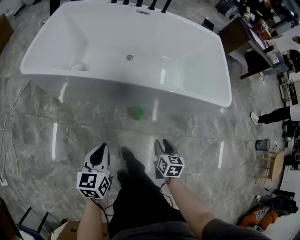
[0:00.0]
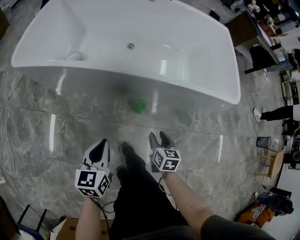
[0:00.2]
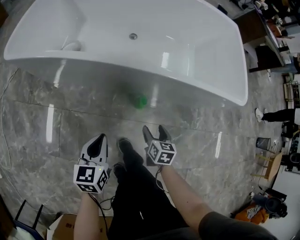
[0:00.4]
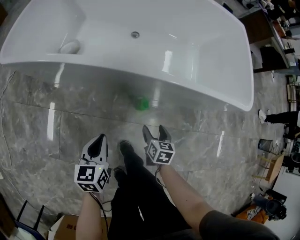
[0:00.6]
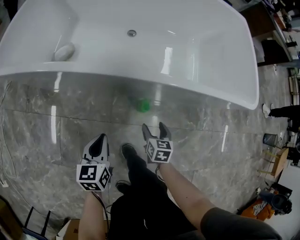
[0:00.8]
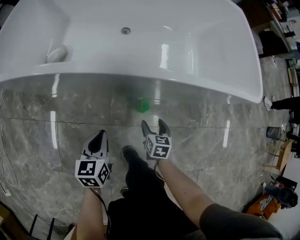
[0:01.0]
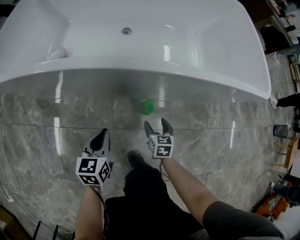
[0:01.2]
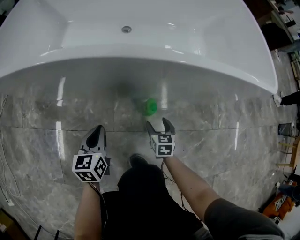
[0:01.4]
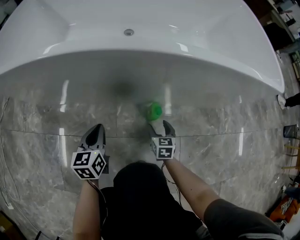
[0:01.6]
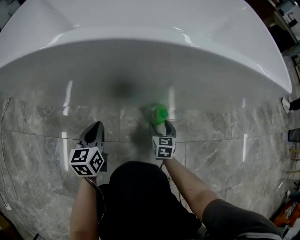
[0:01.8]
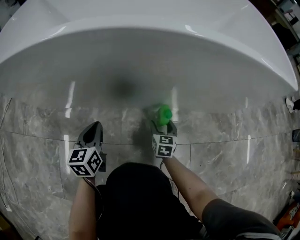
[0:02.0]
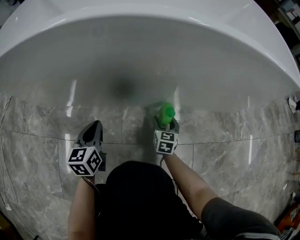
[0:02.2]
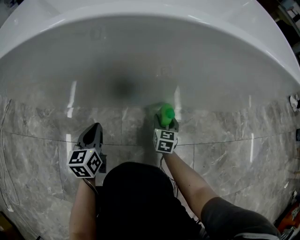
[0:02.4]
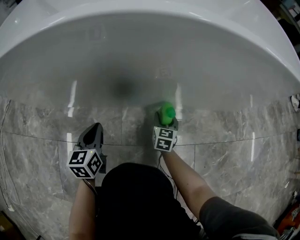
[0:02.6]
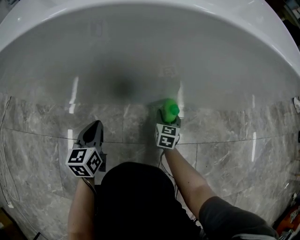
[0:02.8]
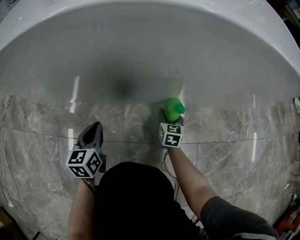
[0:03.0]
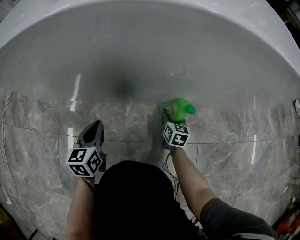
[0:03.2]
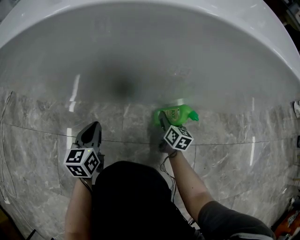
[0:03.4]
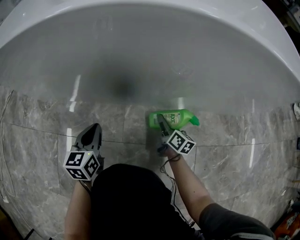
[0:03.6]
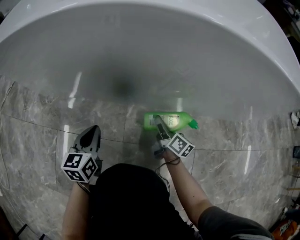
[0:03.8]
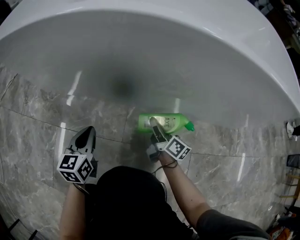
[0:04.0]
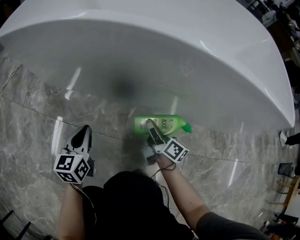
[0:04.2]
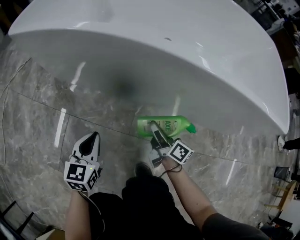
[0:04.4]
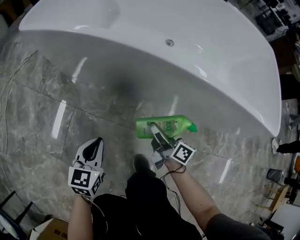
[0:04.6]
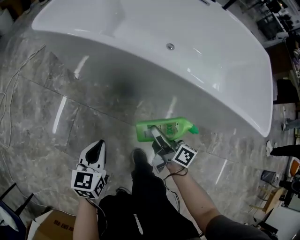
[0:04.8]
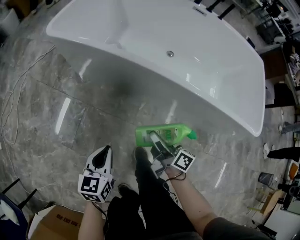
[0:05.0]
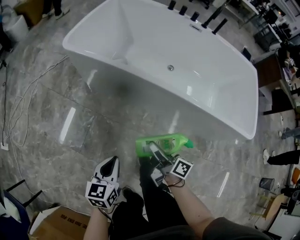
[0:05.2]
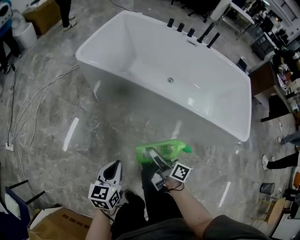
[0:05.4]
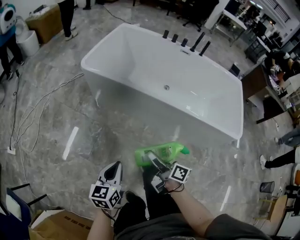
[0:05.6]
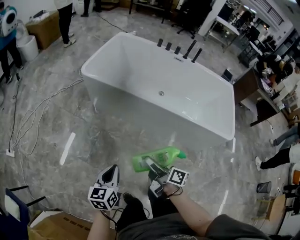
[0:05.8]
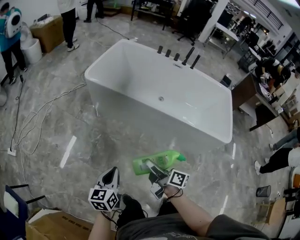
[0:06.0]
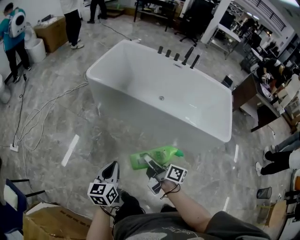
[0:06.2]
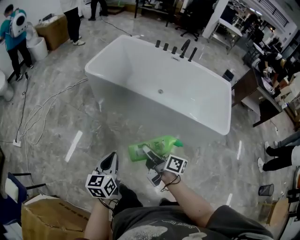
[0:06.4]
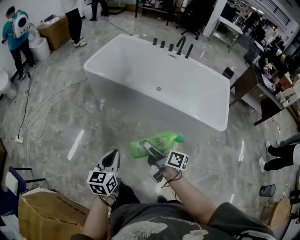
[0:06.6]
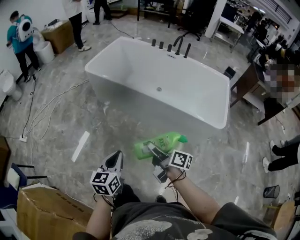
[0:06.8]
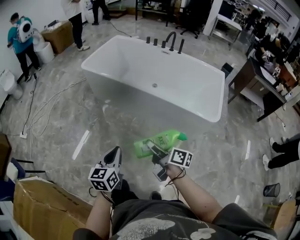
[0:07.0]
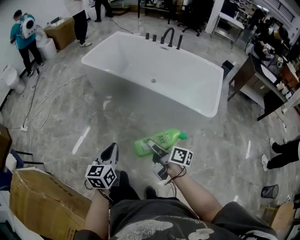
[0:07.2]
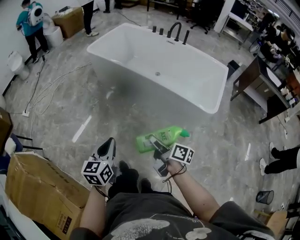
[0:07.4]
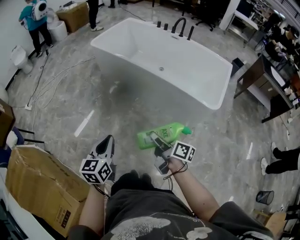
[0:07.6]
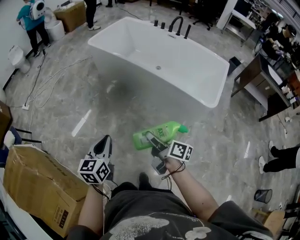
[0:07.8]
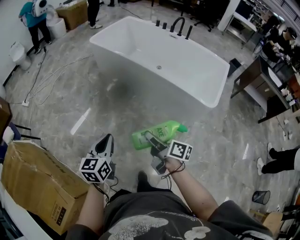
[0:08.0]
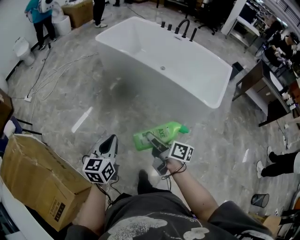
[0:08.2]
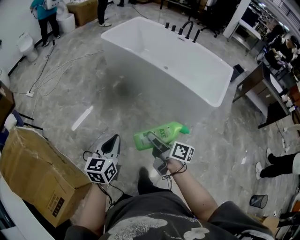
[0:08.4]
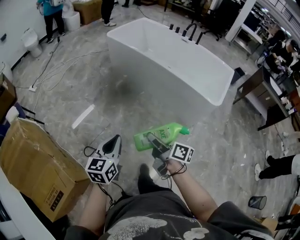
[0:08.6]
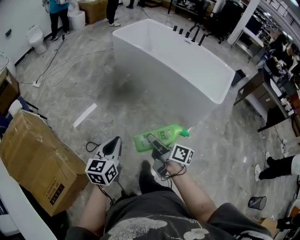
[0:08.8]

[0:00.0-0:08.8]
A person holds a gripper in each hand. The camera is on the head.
0:00.0 to 0:01.4: The left gripper moves downward and forward, about 35 cm; the right gripper heads downward, covering approximately 35 cm, and opens.
0:01.4 to 0:03.0: The left gripper goes approximately 15 cm downward. Meanwhile the right gripper travels downward and forward by some 20 cm.
0:03.0 to 0:04.4: The right gripper goes some 25 cm upward and to the left, and turns by some 60 degrees. Meanwhile the left gripper moves upward, backward and to the left, some 20 cm.
0:04.4 to 0:05.8: The two grippers go about 50 cm upward and backward.
0:05.8 to 0:07.4: The pair of grippers is taken backward and to the right, approximately 40 cm.
0:07.4 to 0:08.8: Both grippers travel together backward and to the left, roughly 25 cm.

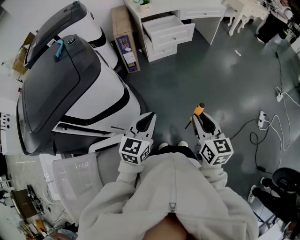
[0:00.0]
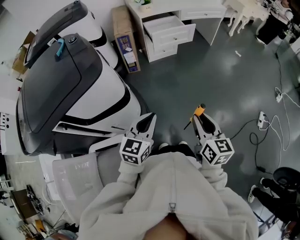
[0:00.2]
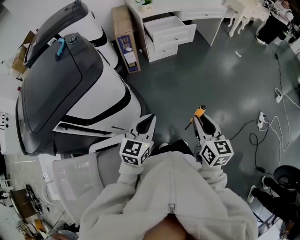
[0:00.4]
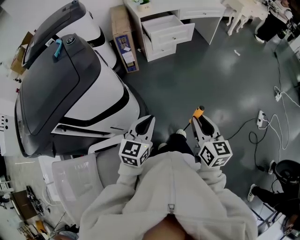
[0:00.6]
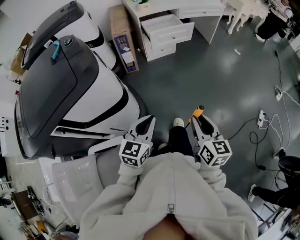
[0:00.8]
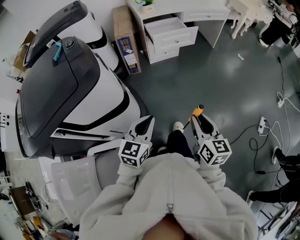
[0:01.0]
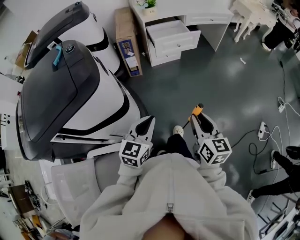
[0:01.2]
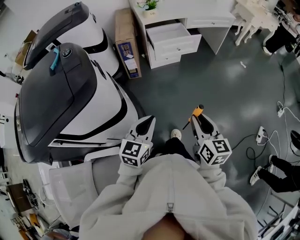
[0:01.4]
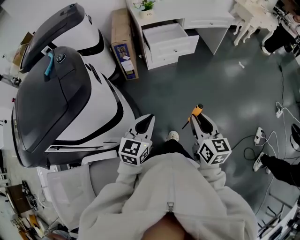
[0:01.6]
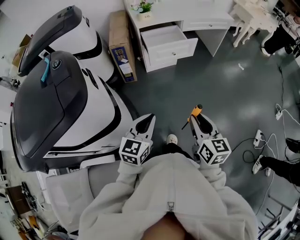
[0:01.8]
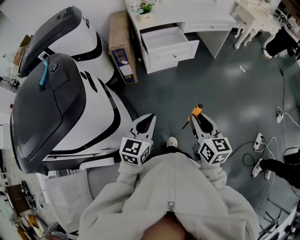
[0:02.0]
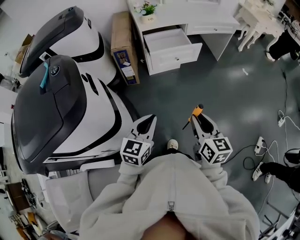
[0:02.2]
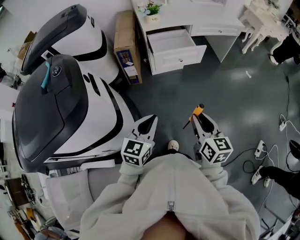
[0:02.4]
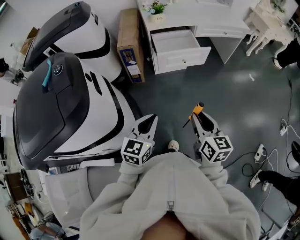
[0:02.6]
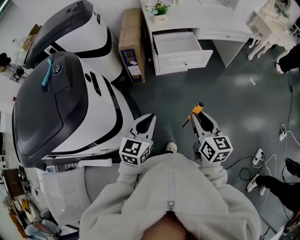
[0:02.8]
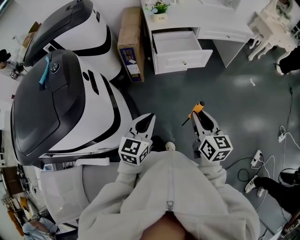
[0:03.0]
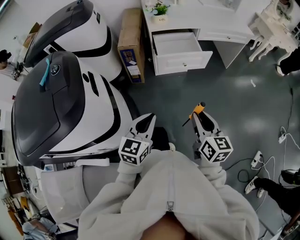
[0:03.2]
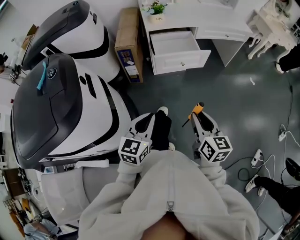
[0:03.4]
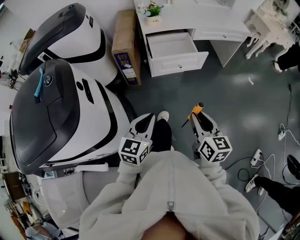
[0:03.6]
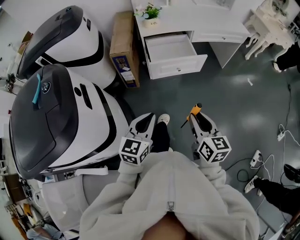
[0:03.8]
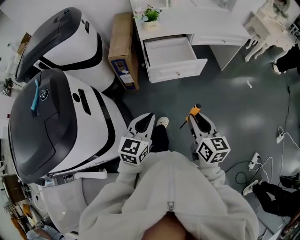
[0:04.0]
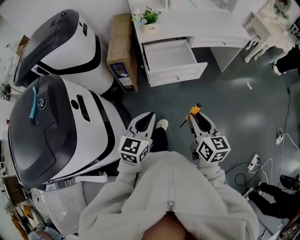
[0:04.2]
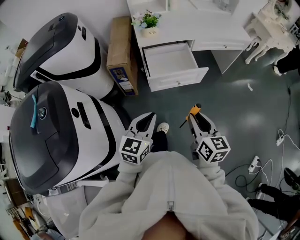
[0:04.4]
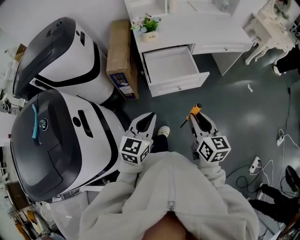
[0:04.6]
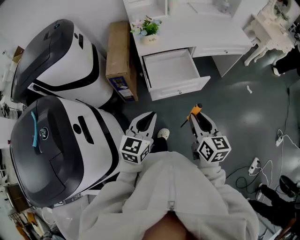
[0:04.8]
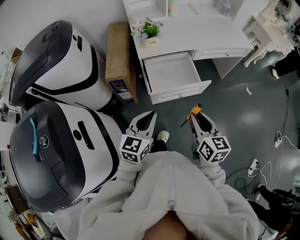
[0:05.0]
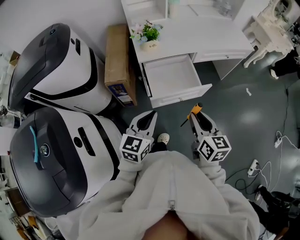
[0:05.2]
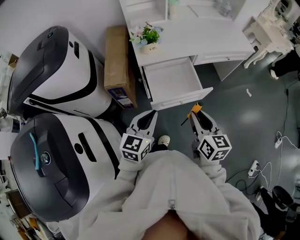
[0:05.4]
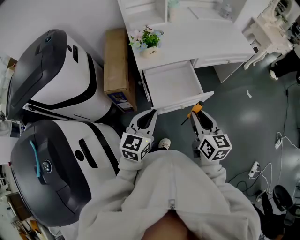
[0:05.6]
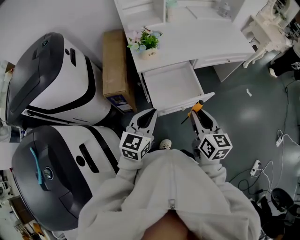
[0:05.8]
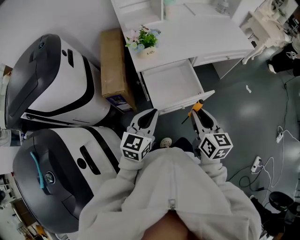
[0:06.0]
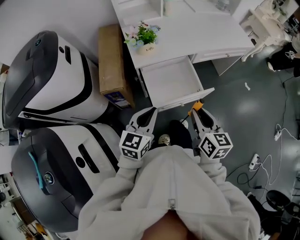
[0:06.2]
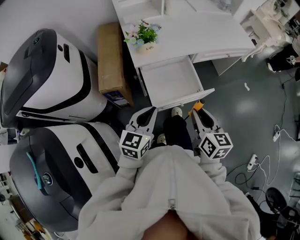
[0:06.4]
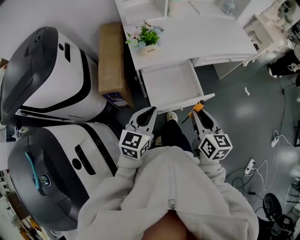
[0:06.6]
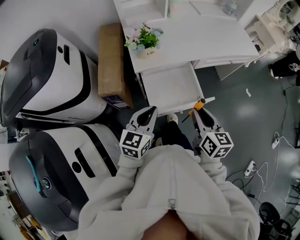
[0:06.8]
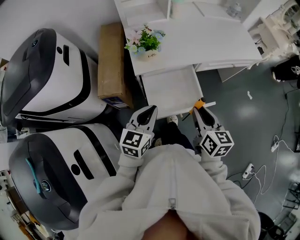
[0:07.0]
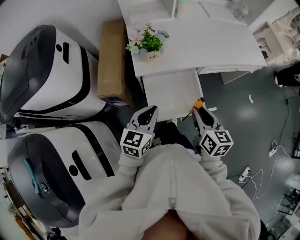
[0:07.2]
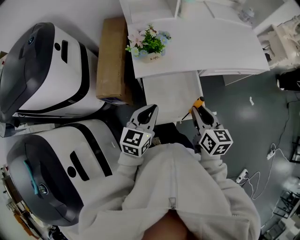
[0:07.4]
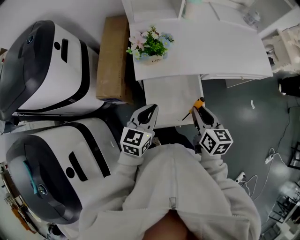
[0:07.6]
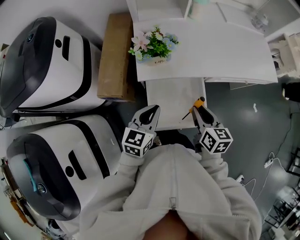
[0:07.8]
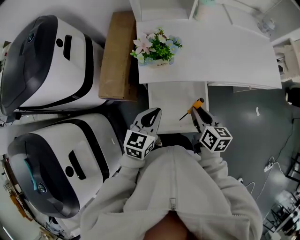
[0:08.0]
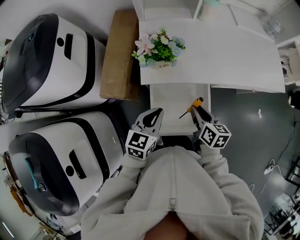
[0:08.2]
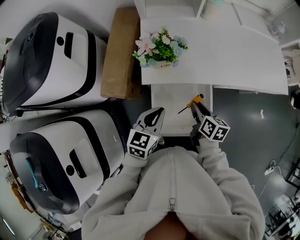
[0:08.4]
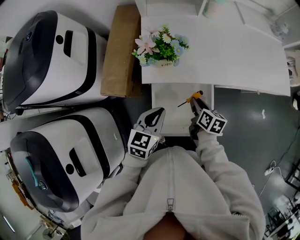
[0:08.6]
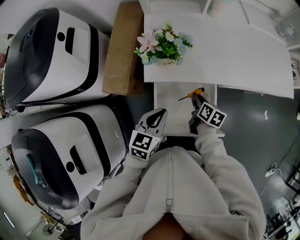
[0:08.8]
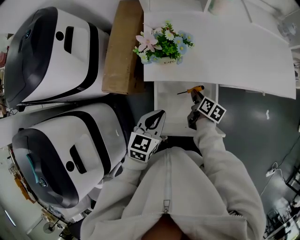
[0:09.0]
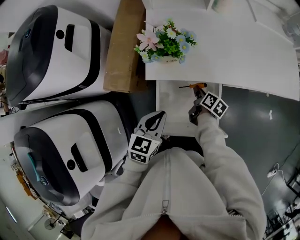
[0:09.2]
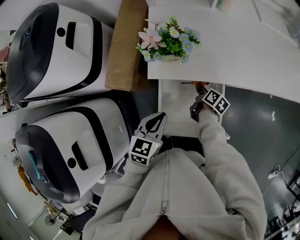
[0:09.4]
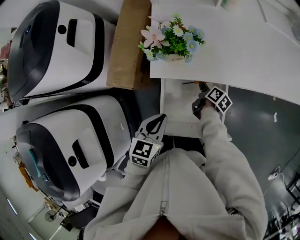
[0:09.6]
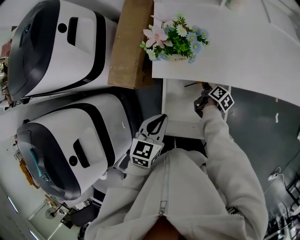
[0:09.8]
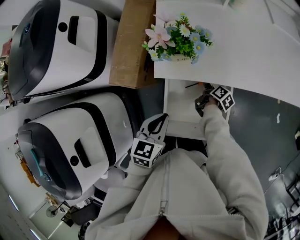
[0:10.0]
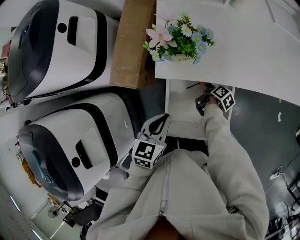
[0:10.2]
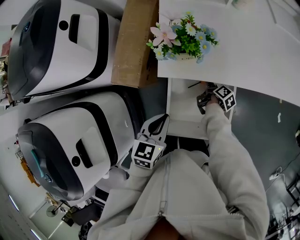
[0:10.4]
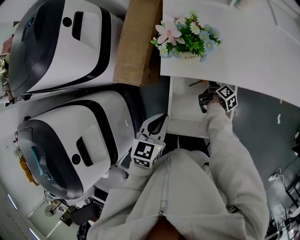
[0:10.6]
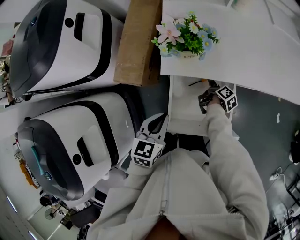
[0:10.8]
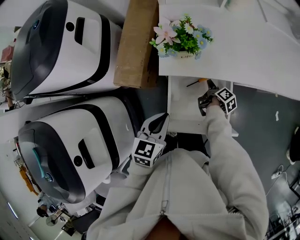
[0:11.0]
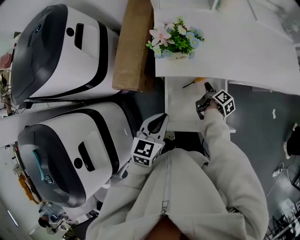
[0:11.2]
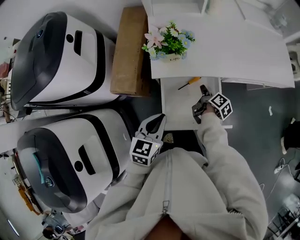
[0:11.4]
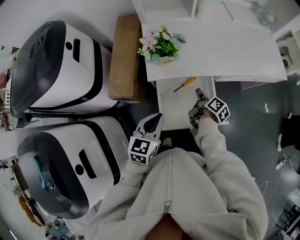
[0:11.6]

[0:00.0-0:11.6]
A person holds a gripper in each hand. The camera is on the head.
0:00.0 to 0:01.4: Both grippers move forward, approximately 10 cm.
0:01.4 to 0:02.8: Both grippers move forward, some 15 cm.
0:02.8 to 0:04.4: Both grippers travel together forward, some 15 cm.
0:04.4 to 0:05.8: The grippers both shift forward by some 20 cm.
0:05.8 to 0:07.2: The grippers both shift forward by roughly 10 cm.
0:07.2 to 0:08.8: The right gripper heads downward and forward, covering about 25 cm, and turns by approximately 30 degrees. The left gripper goes about 10 cm forward and downward.
0:08.8 to 0:10.2: The right gripper moves downward and forward, roughly 15 cm, and rotates some 30 degrees.
0:10.2 to 0:11.6: The right gripper travels upward and backward by roughly 15 cm. The left gripper moves upward, about 5 cm.

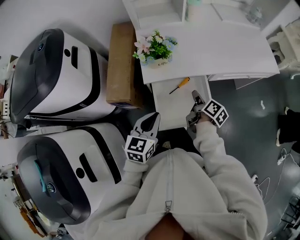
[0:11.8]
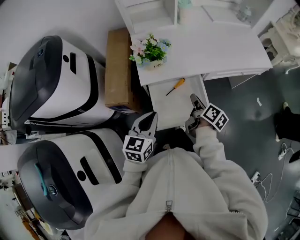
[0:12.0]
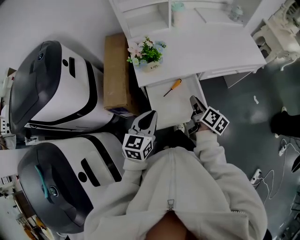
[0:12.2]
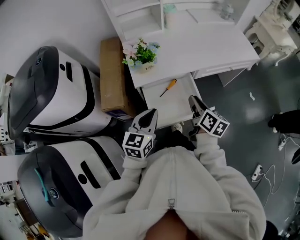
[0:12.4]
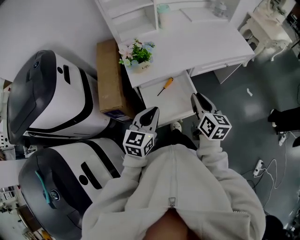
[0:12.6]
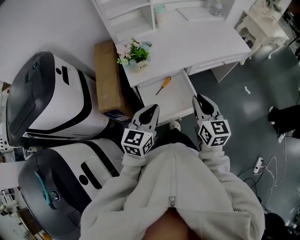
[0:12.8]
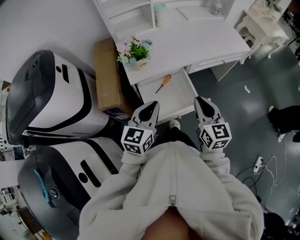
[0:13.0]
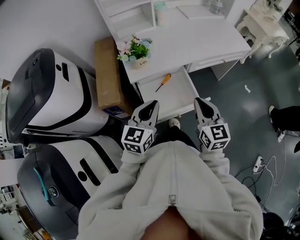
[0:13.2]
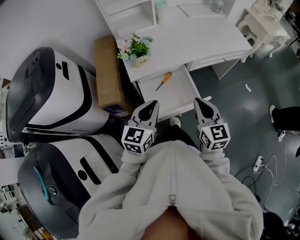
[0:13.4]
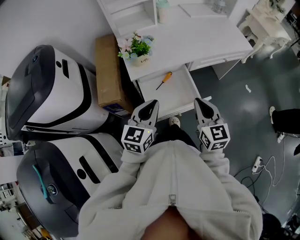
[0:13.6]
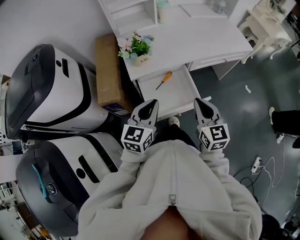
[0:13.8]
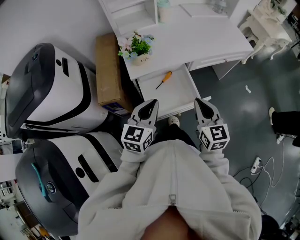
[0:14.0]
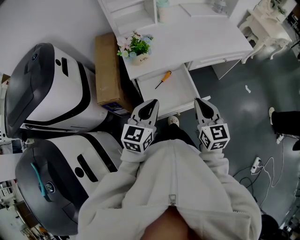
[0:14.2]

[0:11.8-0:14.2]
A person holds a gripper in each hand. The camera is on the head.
0:11.8 to 0:13.0: The left gripper moves upward, roughly 5 cm; the right gripper moves upward and backward, approximately 20 cm, and twists roughly 60 degrees counterclockwise, seen from behind.
0:13.0 to 0:14.2: There are only small adjustments of the grippers.

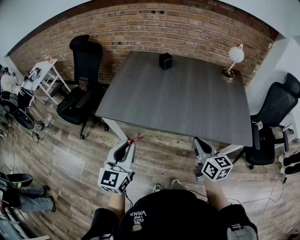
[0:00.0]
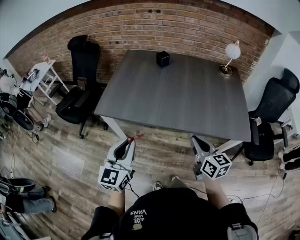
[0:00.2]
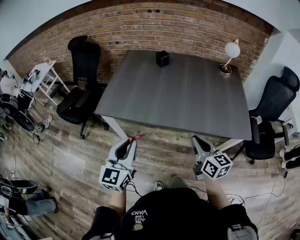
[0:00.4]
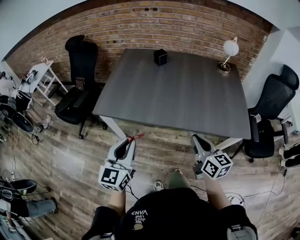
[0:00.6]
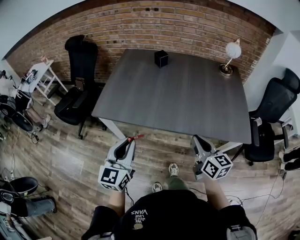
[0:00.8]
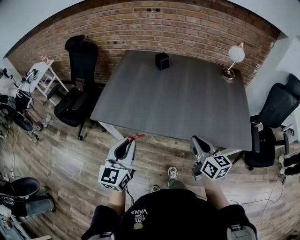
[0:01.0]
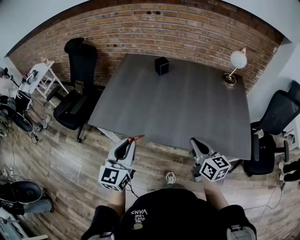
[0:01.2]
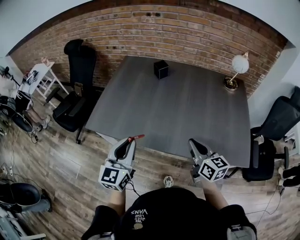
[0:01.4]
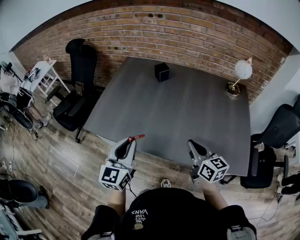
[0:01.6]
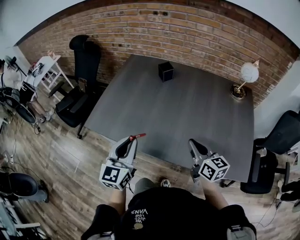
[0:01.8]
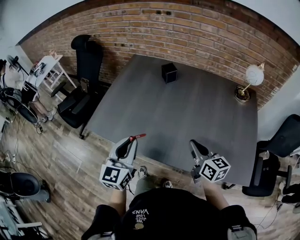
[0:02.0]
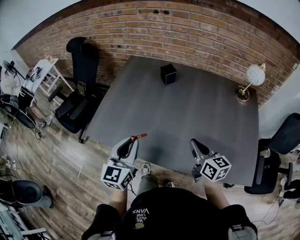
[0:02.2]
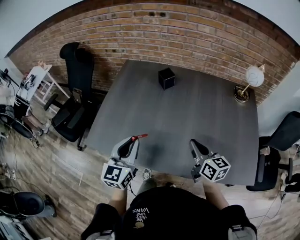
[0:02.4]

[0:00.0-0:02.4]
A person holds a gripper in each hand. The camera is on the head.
0:00.0 to 0:01.2: The right gripper is displaced forward by roughly 10 cm. The left gripper shifts roughly 10 cm forward and to the right.
0:01.2 to 0:02.4: The grippers both shift forward by some 20 cm.
